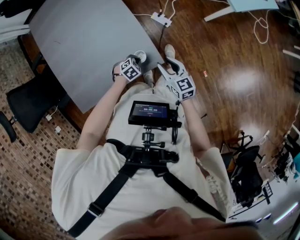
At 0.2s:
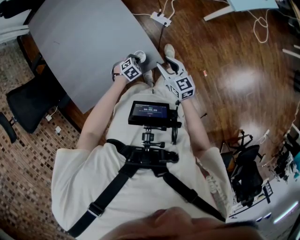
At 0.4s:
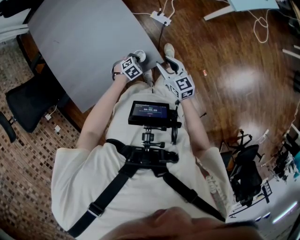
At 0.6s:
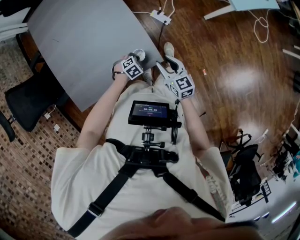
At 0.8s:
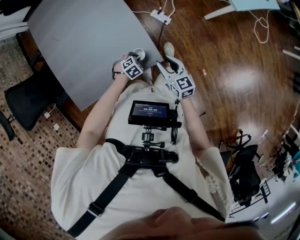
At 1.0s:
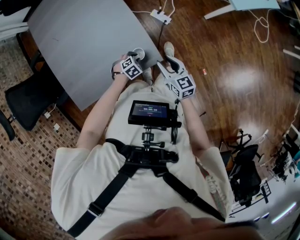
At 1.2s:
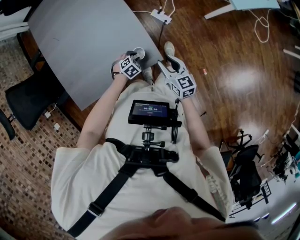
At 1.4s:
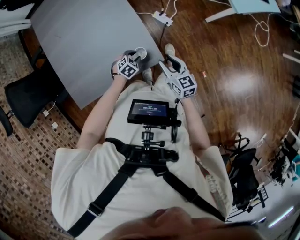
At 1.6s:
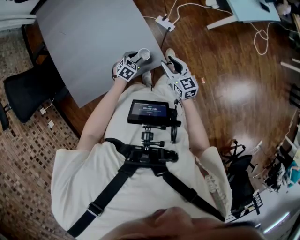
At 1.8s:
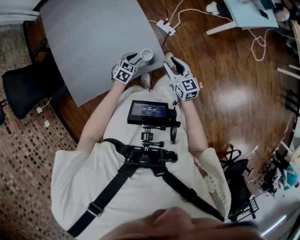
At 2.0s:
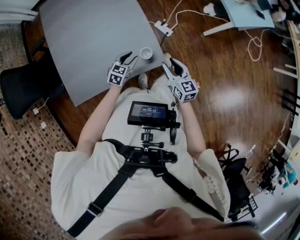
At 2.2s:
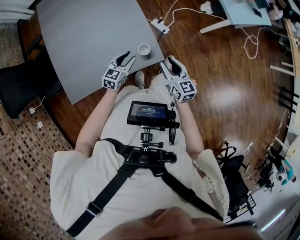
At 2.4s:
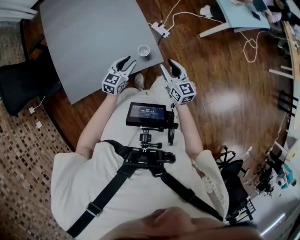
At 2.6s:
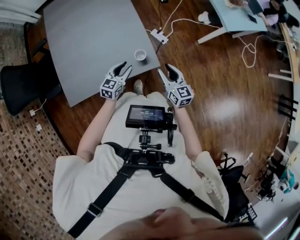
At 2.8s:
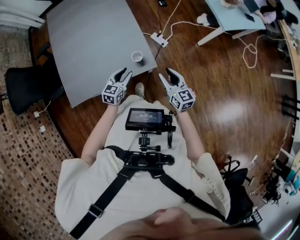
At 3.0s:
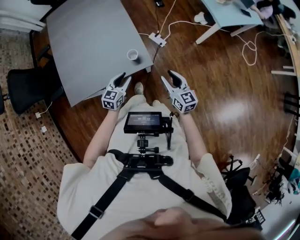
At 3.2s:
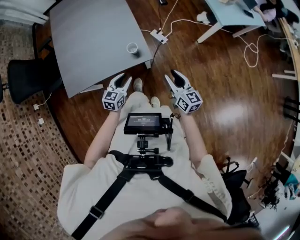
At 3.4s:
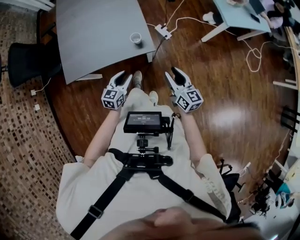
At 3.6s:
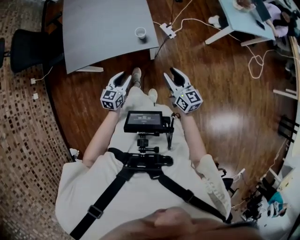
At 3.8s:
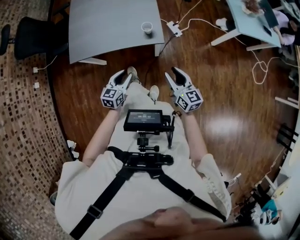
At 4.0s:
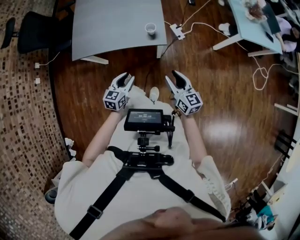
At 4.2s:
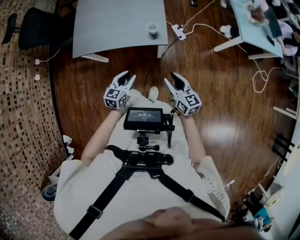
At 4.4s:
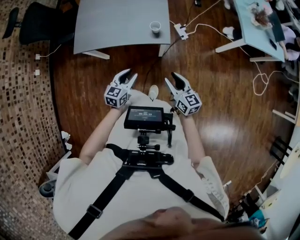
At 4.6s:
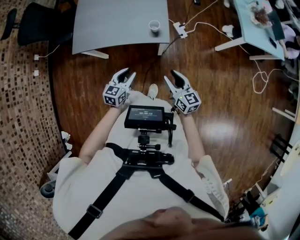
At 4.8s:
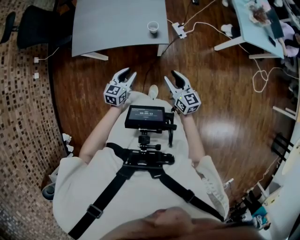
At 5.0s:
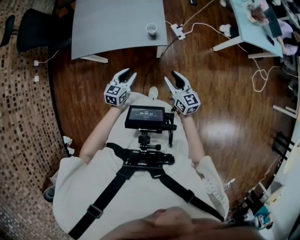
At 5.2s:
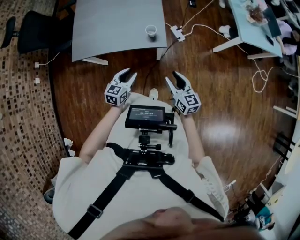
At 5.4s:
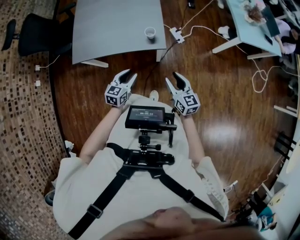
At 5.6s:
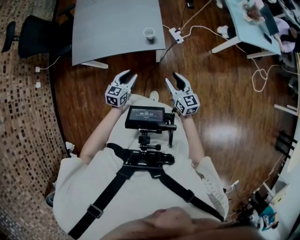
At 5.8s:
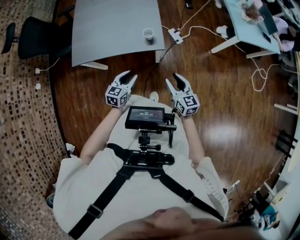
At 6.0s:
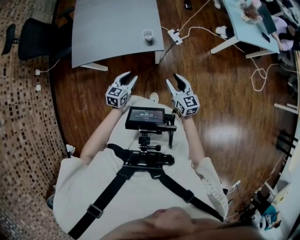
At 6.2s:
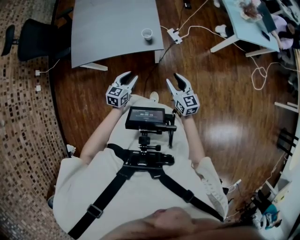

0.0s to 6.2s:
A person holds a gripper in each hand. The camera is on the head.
0.0s to 1.6s: The right gripper changes place by about 5 cm. The left gripper is displaced upward by approximately 5 cm, changes its angle by some 20 degrees, and opens its fingers.
1.6s to 3.2s: The left gripper shifts about 20 cm backward, upward and to the right, and changes its angle by approximately 40 degrees, while the right gripper moves to the right, backward and upward, approximately 20 cm.
3.2s to 4.6s: The right gripper travels backward and to the left by about 10 cm, and changes its angle by about 20 degrees. Meanwhile the left gripper is displaced backward by about 15 cm.
4.6s to 6.2s: The grippers move only a little.

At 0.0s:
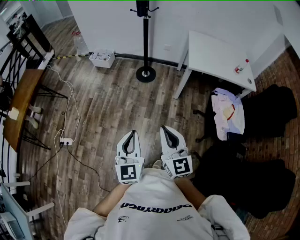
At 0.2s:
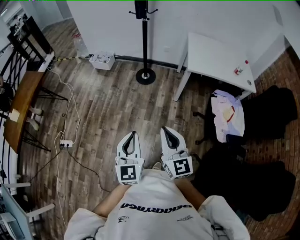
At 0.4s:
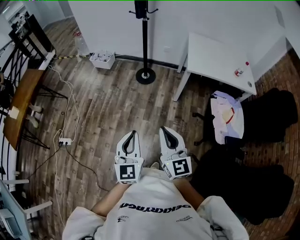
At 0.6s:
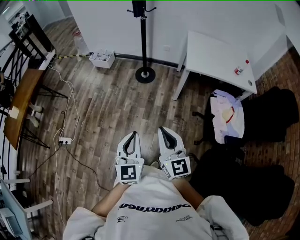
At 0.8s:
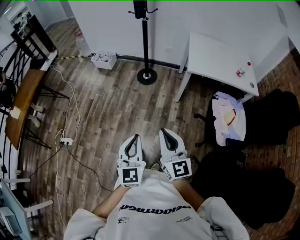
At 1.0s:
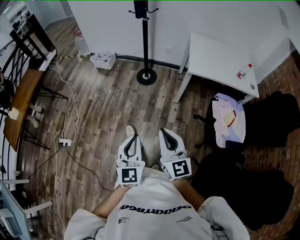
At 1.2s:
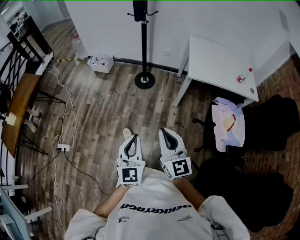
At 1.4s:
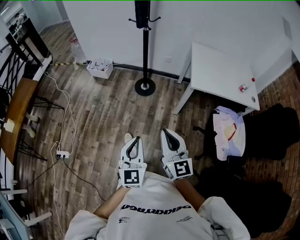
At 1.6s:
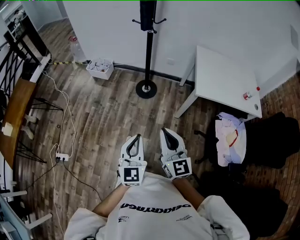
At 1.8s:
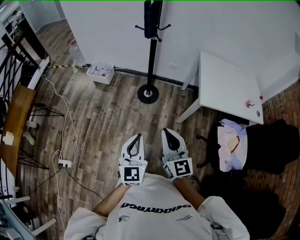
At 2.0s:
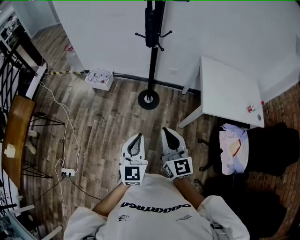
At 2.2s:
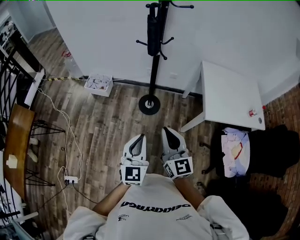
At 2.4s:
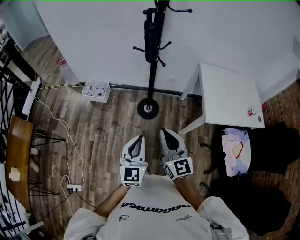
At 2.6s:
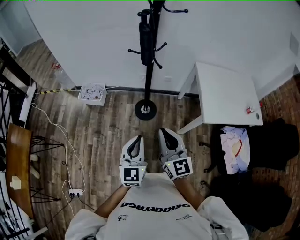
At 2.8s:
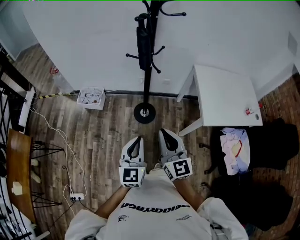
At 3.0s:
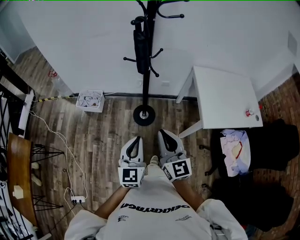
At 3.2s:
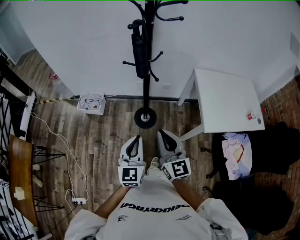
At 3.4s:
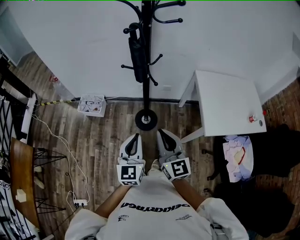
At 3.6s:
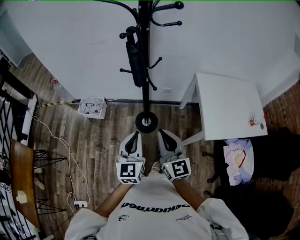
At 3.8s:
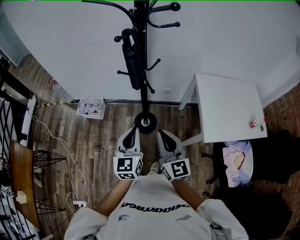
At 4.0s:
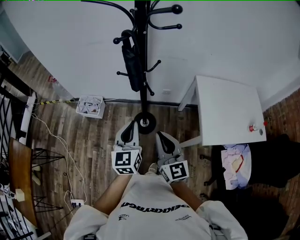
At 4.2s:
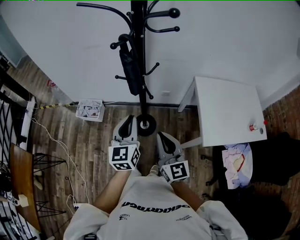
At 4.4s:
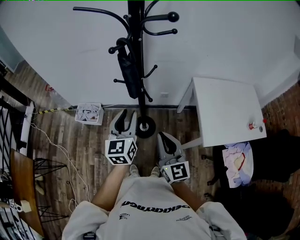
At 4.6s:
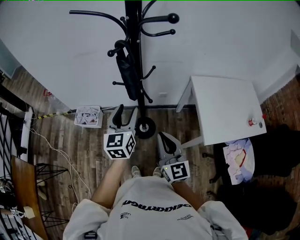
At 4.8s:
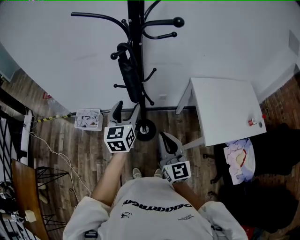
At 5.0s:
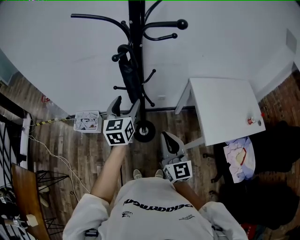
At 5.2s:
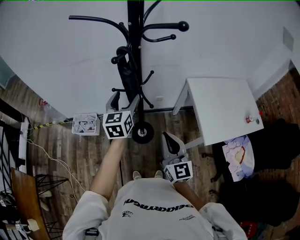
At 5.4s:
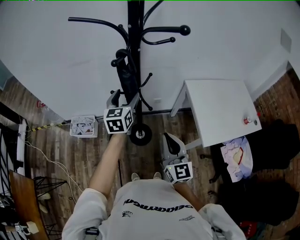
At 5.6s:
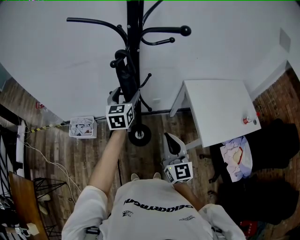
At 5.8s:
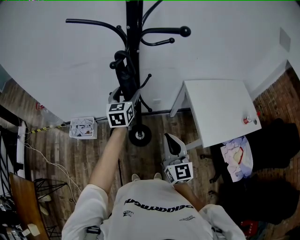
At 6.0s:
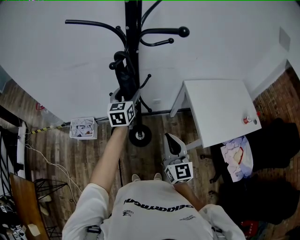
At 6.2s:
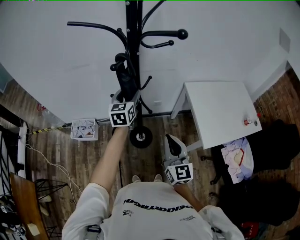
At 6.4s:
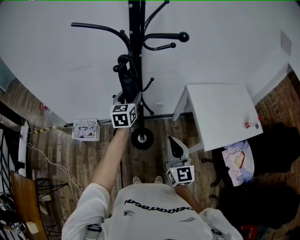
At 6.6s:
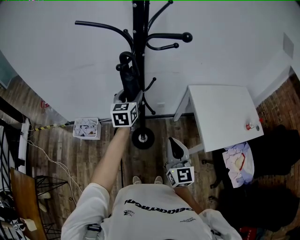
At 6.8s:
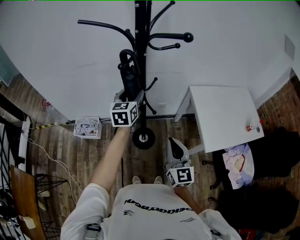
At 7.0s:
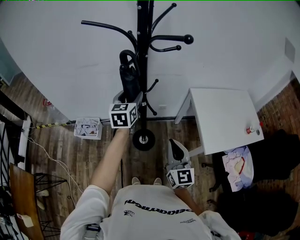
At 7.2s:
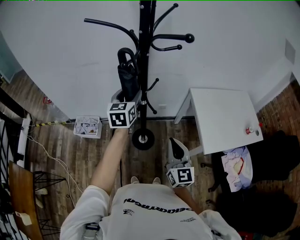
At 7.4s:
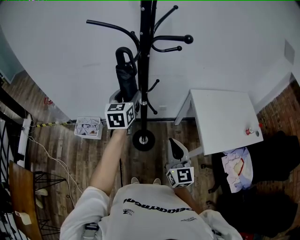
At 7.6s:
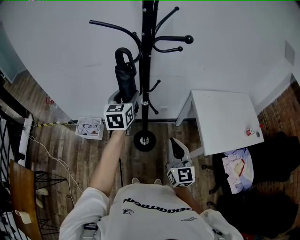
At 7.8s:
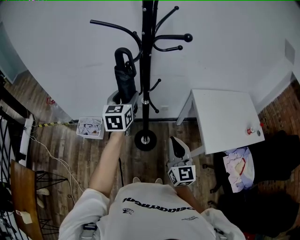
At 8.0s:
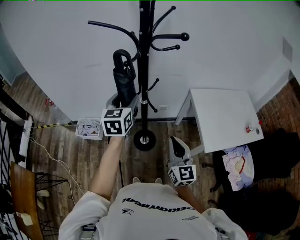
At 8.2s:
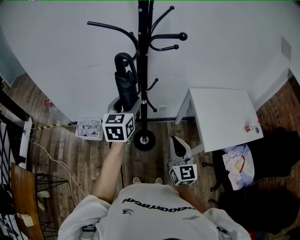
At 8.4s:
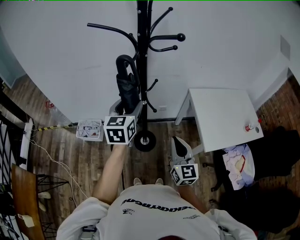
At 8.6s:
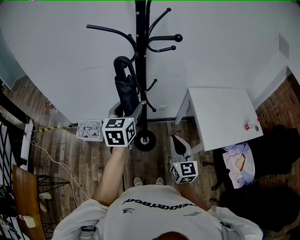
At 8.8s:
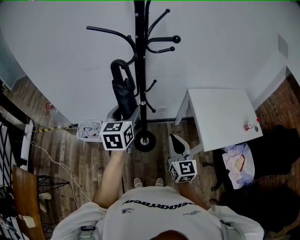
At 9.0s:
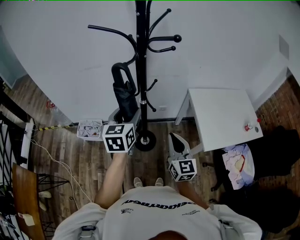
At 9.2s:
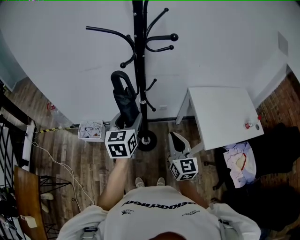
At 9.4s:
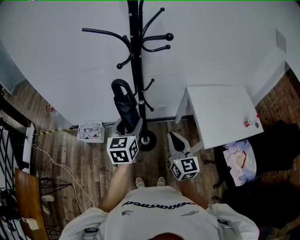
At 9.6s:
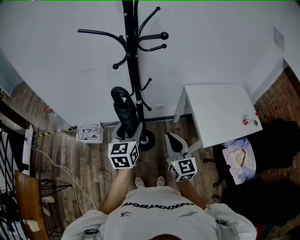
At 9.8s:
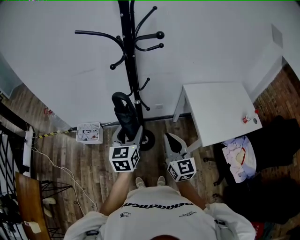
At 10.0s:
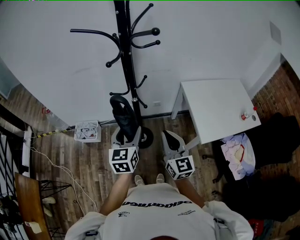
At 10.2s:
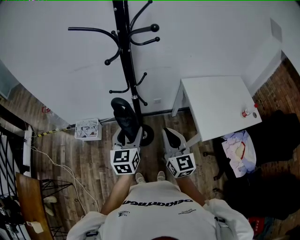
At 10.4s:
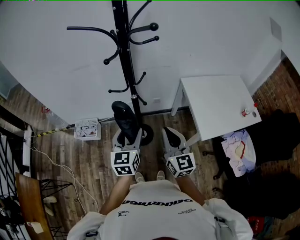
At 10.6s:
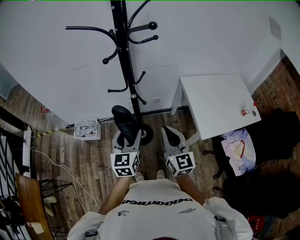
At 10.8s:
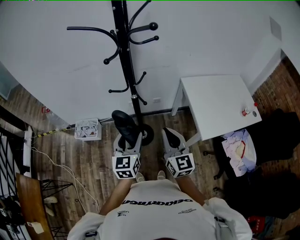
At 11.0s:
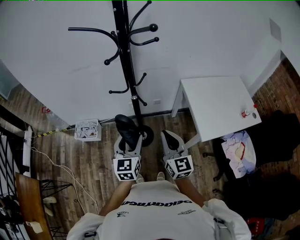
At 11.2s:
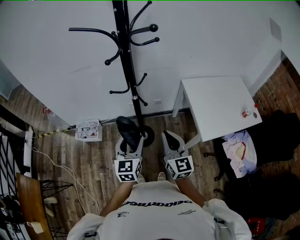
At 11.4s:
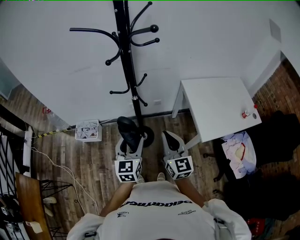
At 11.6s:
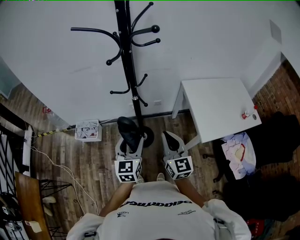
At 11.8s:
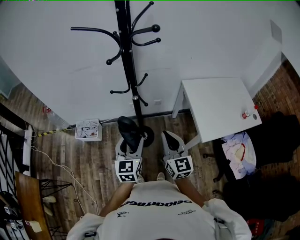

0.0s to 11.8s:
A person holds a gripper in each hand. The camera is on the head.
0.0s to 1.4s: Both grippers move forward, about 15 cm.
1.4s to 3.0s: The two grippers travel together, forward, about 50 cm.
3.0s to 4.4s: The left gripper goes some 25 cm forward, and opens up. Meanwhile the right gripper goes about 15 cm forward.
4.4s to 6.0s: The left gripper travels forward by approximately 20 cm, and opens.
6.0s to 7.4s: The left gripper moves upward and backward, approximately 10 cm.
7.4s to 8.8s: The left gripper shifts some 10 cm backward.
8.8s to 10.4s: The left gripper travels downward and backward by some 10 cm.
10.4s to 11.8s: The grippers stay close to where they were, moving slightly.

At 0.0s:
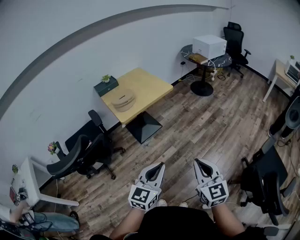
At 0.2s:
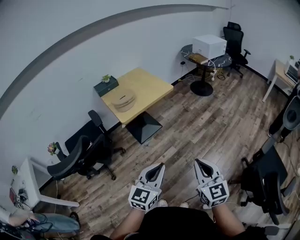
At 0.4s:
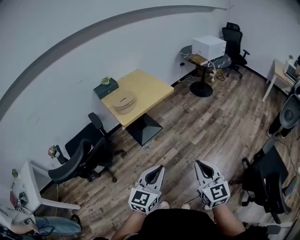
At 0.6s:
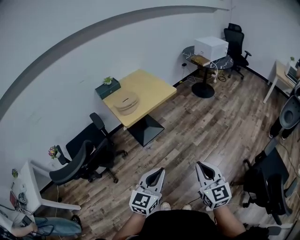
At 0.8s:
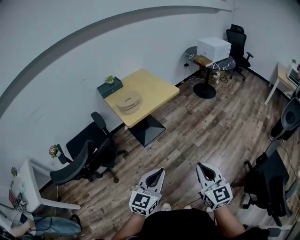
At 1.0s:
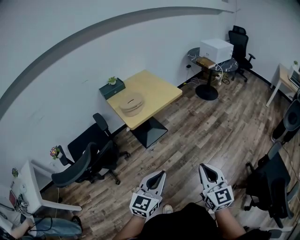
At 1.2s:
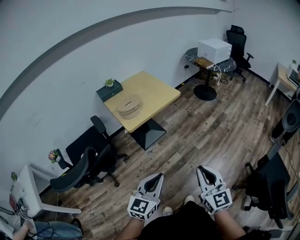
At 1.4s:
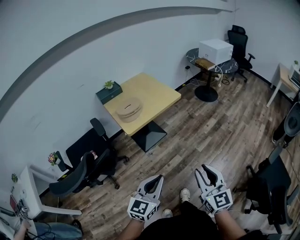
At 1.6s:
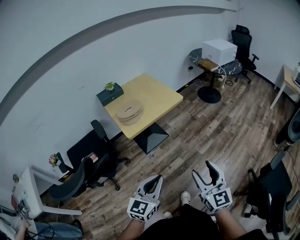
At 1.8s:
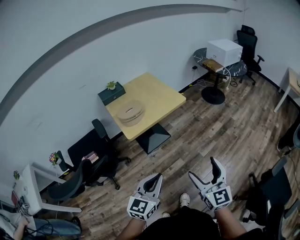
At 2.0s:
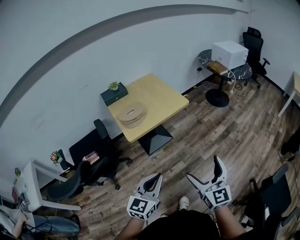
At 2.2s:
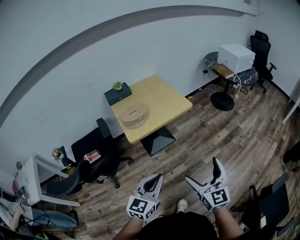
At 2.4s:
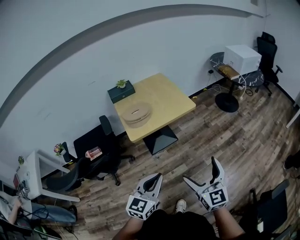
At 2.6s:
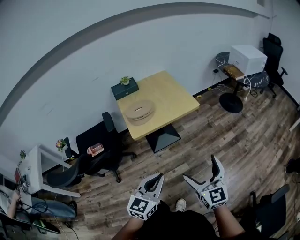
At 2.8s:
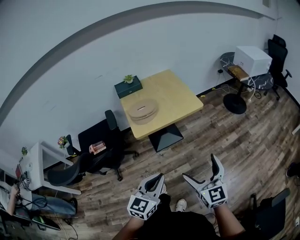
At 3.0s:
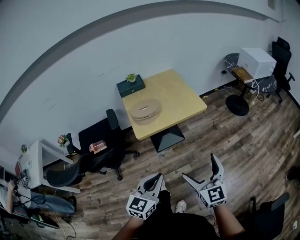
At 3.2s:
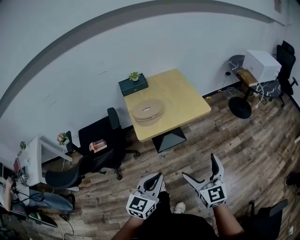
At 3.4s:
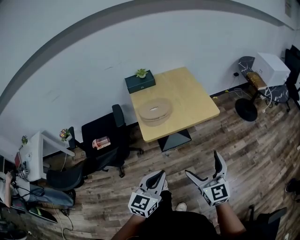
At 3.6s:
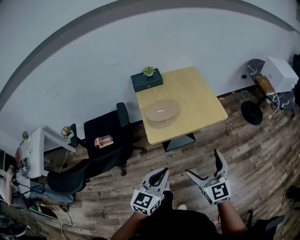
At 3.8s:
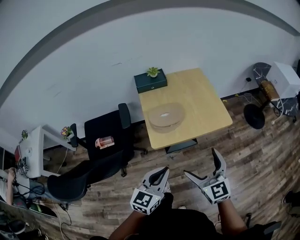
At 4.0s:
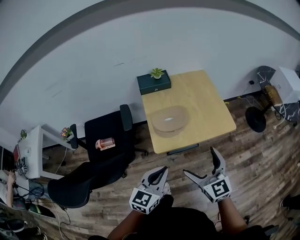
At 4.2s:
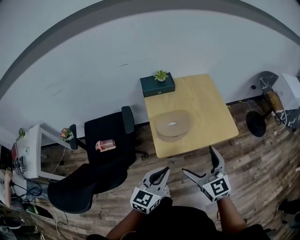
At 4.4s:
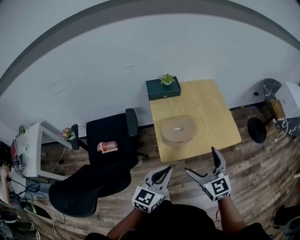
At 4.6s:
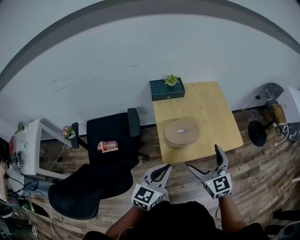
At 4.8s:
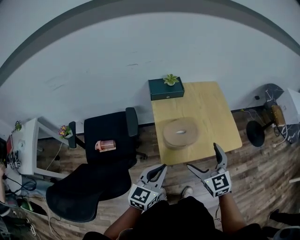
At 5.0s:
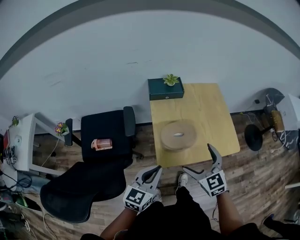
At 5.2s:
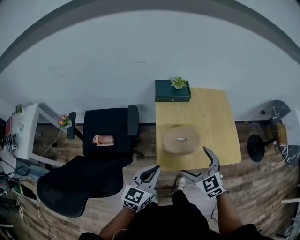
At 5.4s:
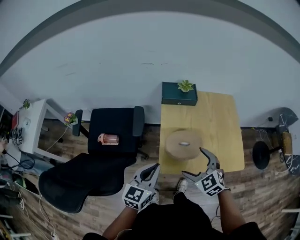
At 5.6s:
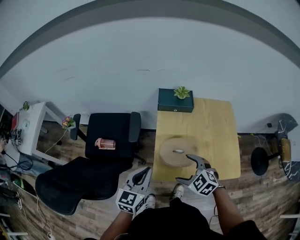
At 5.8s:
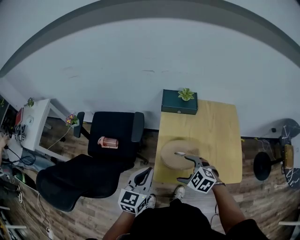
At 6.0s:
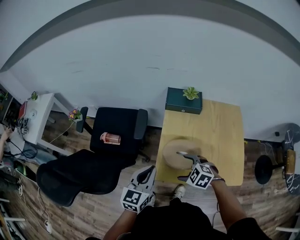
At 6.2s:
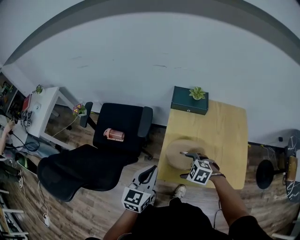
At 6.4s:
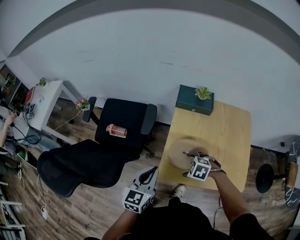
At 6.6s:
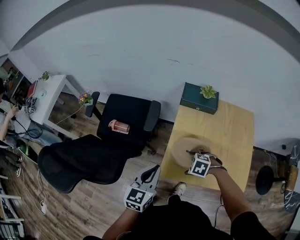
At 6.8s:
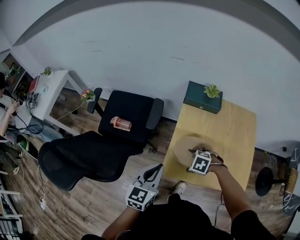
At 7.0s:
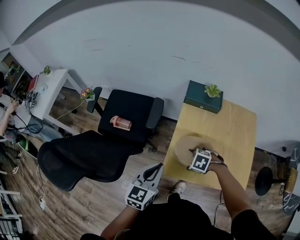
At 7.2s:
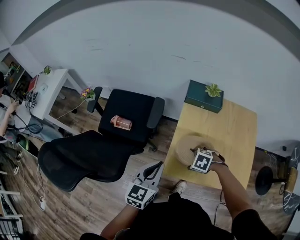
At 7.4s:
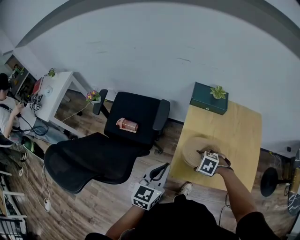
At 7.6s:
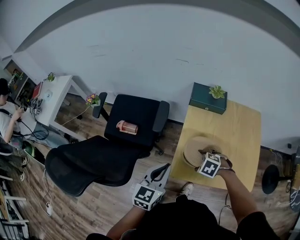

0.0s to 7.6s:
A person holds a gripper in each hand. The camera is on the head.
0.0s to 1.6s: Both grippers move forward and to the left, some 15 cm. The right gripper opens.
1.6s to 3.0s: The left gripper is displaced forward by approximately 10 cm, while the right gripper is displaced forward by approximately 15 cm, and opens its fingers.
3.0s to 4.6s: The two grippers go some 35 cm forward and to the left. The right gripper rotates roughly 20 degrees.
4.6s to 6.0s: The left gripper changes place by approximately 10 cm, and swivels some 30 degrees. The right gripper goes roughly 15 cm downward, and points its fingers approximately 40 degrees further downward.
6.0s to 7.6s: The right gripper moves approximately 5 cm.
